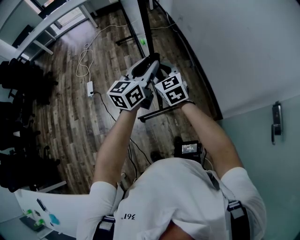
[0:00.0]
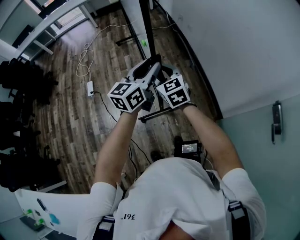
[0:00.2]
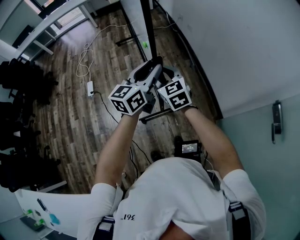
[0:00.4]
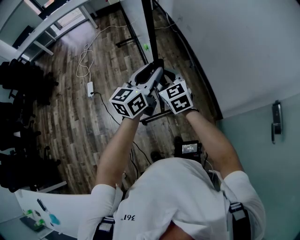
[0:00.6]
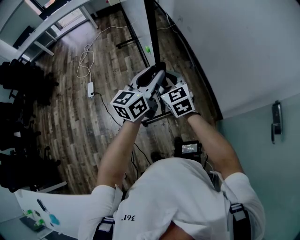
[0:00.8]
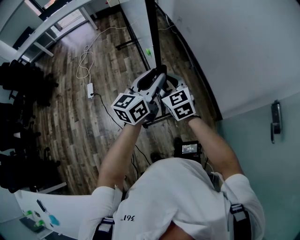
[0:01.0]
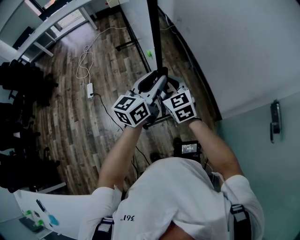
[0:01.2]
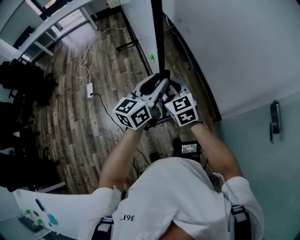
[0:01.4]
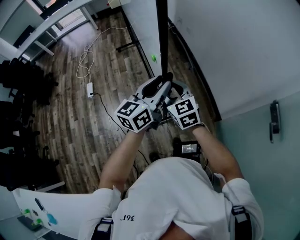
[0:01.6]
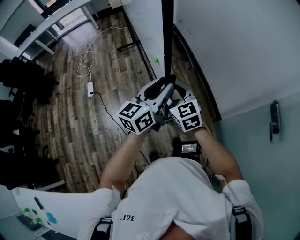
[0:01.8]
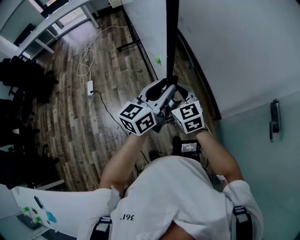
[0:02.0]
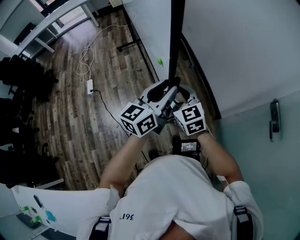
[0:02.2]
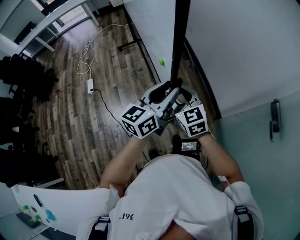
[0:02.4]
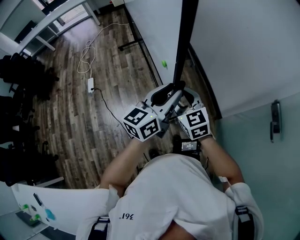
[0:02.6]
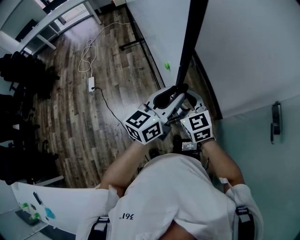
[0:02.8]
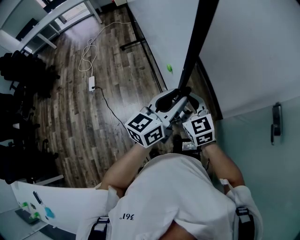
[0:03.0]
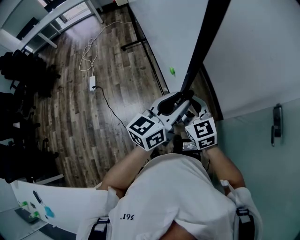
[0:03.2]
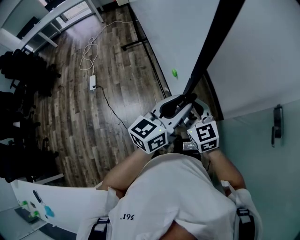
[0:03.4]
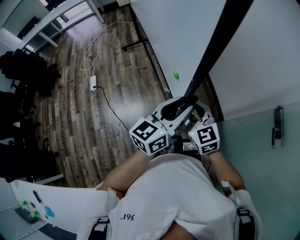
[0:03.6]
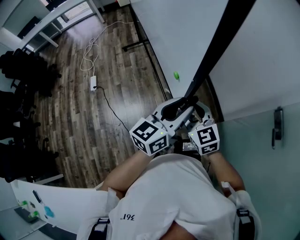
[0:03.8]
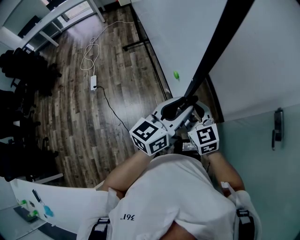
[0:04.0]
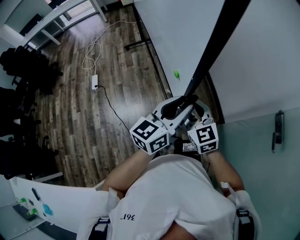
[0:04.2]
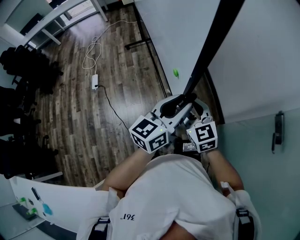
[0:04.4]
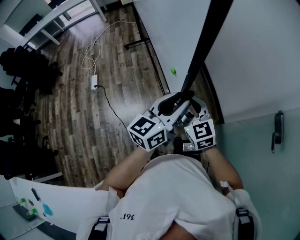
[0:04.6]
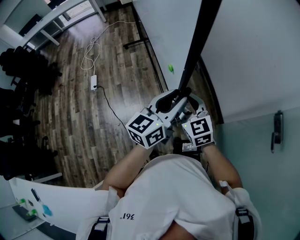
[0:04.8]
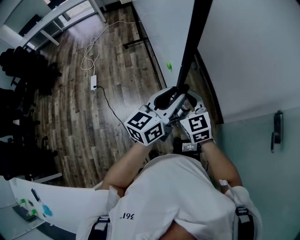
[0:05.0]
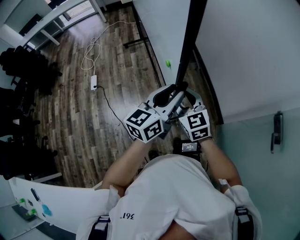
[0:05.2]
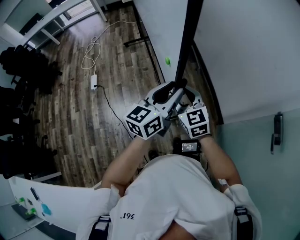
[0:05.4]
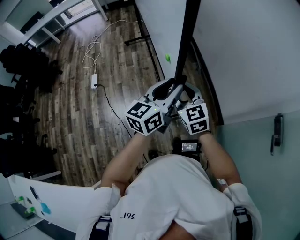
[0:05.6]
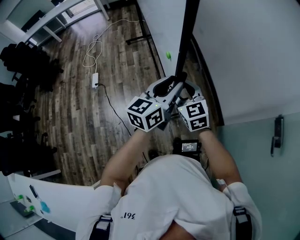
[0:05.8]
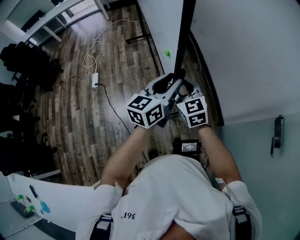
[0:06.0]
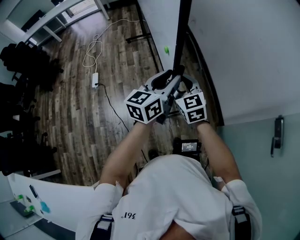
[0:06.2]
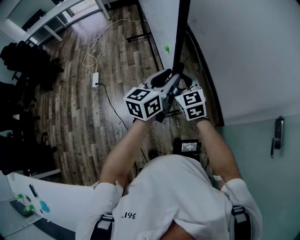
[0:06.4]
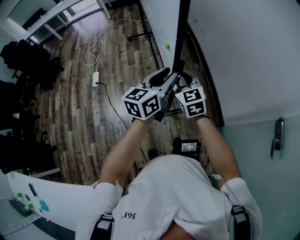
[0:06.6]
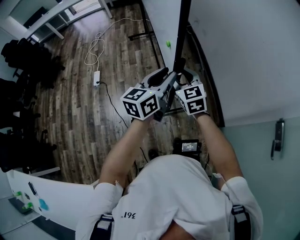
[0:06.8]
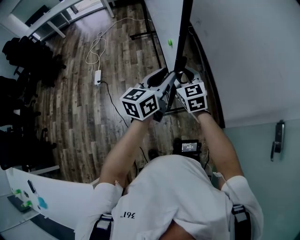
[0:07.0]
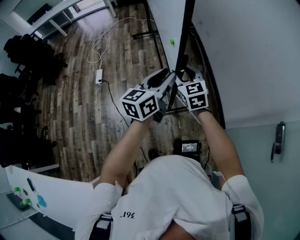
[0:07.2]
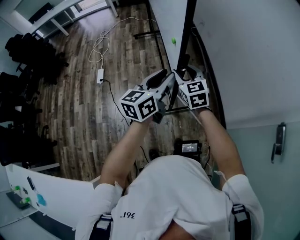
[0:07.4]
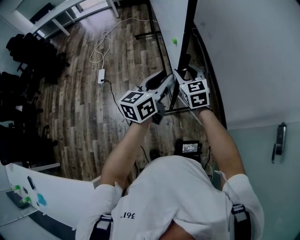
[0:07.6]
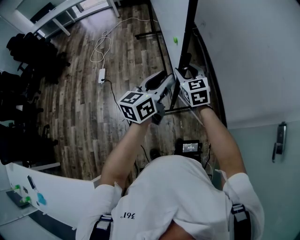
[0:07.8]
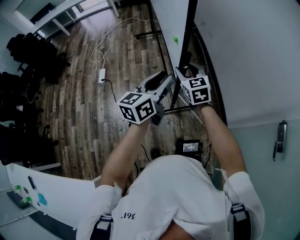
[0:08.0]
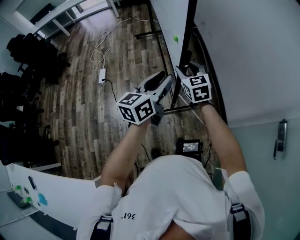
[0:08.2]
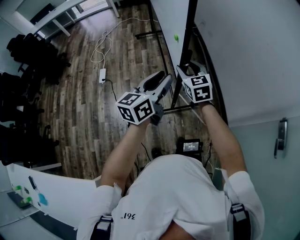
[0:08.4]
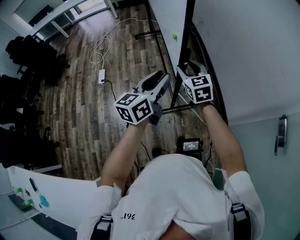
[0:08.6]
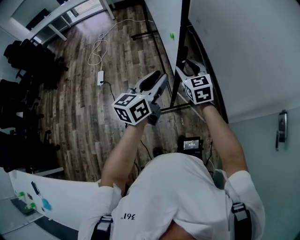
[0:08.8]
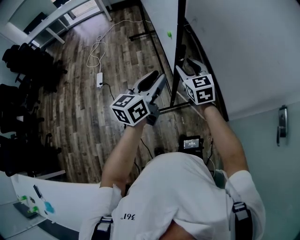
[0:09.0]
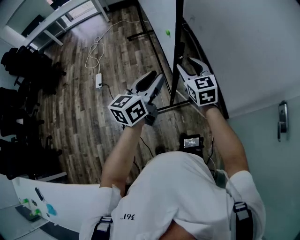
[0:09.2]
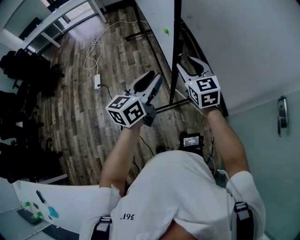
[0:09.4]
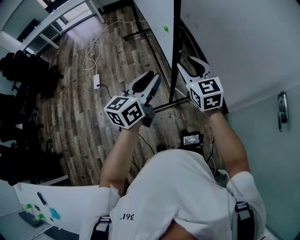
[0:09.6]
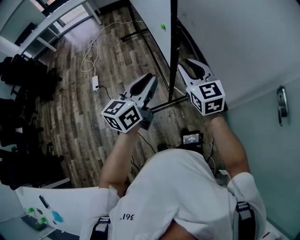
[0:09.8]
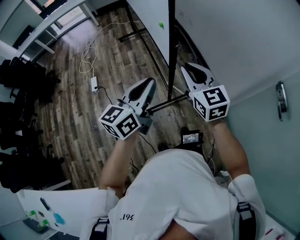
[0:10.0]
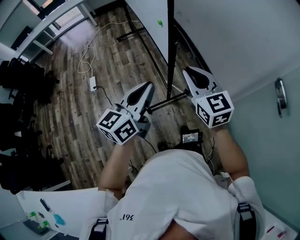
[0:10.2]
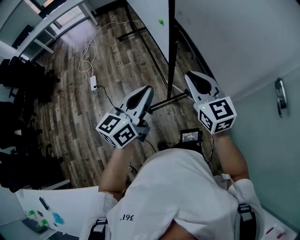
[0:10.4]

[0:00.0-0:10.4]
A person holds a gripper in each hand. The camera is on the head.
0:00.0 to 0:01.4: The grippers both shift backward by about 10 cm.
0:01.4 to 0:03.0: The grippers both shift backward and to the right by approximately 10 cm.
0:03.0 to 0:04.4: There are only small adjustments of the grippers.
0:04.4 to 0:06.0: The two grippers go roughly 10 cm forward.
0:06.0 to 0:07.4: The right gripper goes roughly 5 cm forward; the left gripper travels to the left by about 5 cm.
0:07.4 to 0:09.0: The left gripper changes place by approximately 5 cm.
0:09.0 to 0:10.4: The left gripper shifts approximately 15 cm backward, and closes up. The right gripper shifts about 20 cm backward and upward, and closes up.

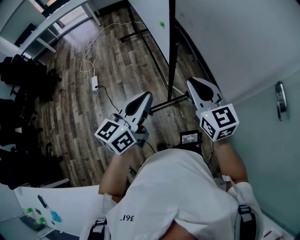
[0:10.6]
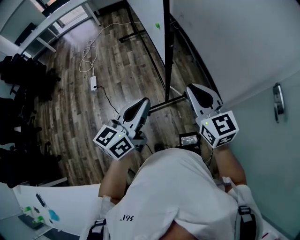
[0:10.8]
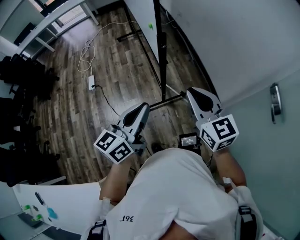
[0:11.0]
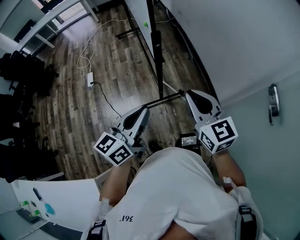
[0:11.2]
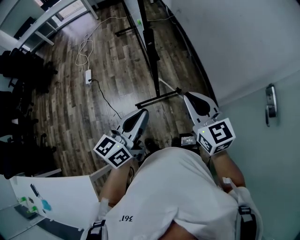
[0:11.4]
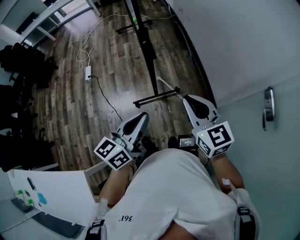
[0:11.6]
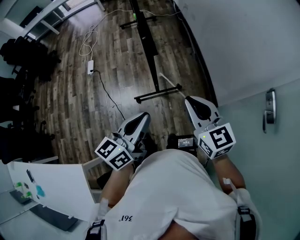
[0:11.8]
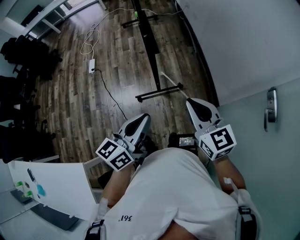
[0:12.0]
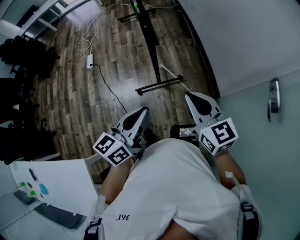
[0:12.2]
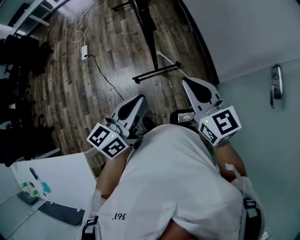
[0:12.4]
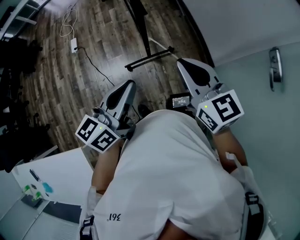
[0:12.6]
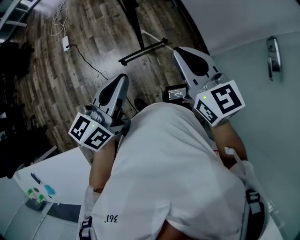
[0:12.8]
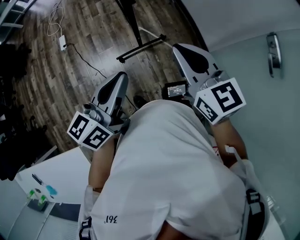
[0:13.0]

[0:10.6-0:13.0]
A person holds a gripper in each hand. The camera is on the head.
0:10.6 to 0:11.8: The two grippers go some 15 cm to the right and backward.
0:11.8 to 0:13.0: The left gripper ends up roughly 5 cm from where it was.

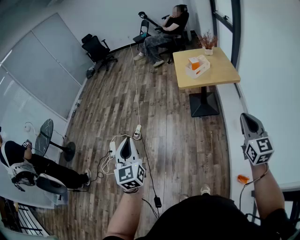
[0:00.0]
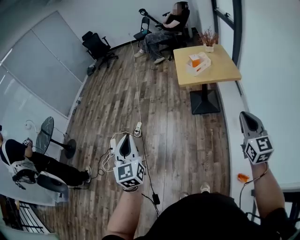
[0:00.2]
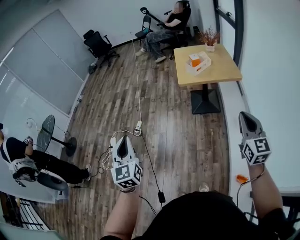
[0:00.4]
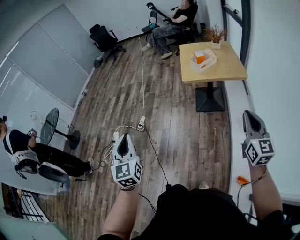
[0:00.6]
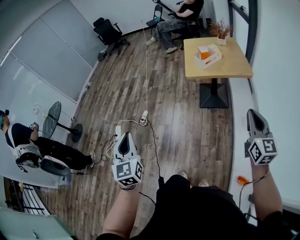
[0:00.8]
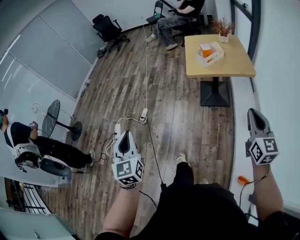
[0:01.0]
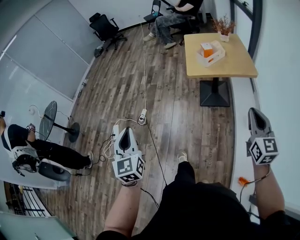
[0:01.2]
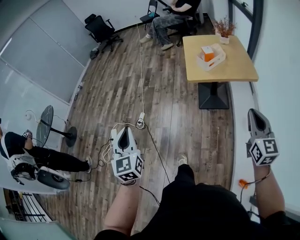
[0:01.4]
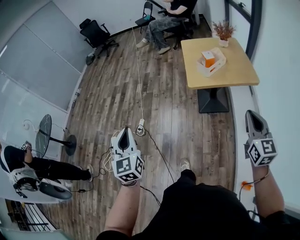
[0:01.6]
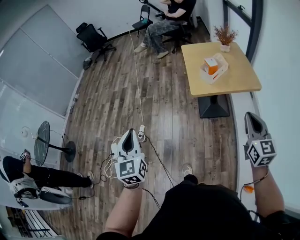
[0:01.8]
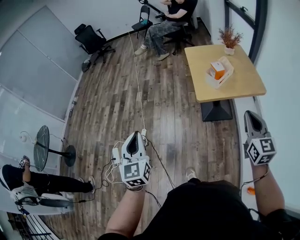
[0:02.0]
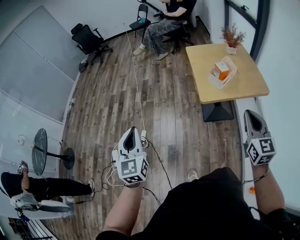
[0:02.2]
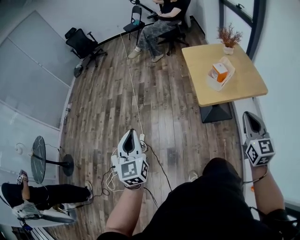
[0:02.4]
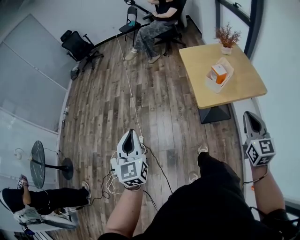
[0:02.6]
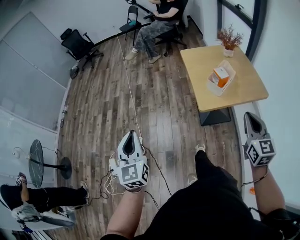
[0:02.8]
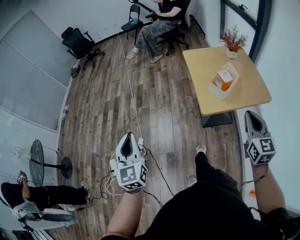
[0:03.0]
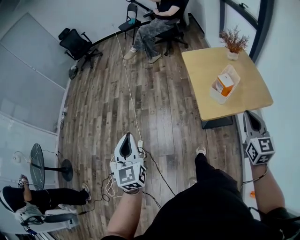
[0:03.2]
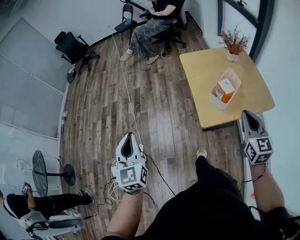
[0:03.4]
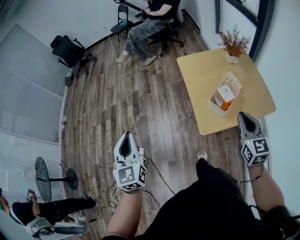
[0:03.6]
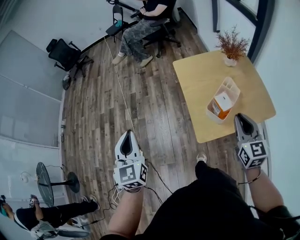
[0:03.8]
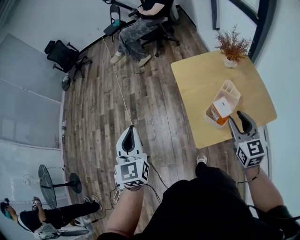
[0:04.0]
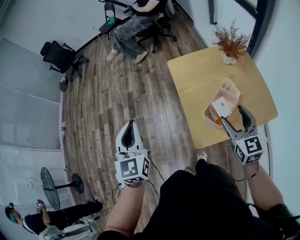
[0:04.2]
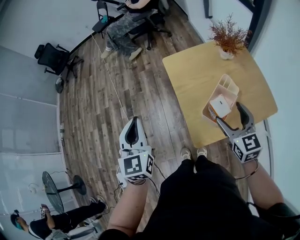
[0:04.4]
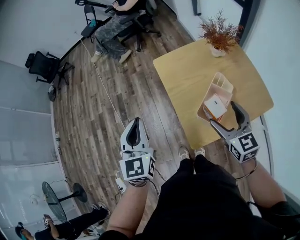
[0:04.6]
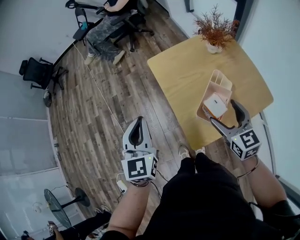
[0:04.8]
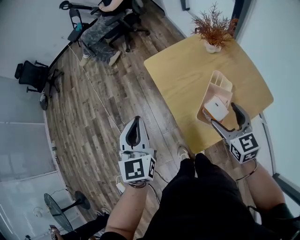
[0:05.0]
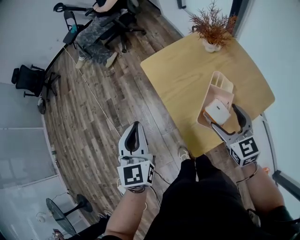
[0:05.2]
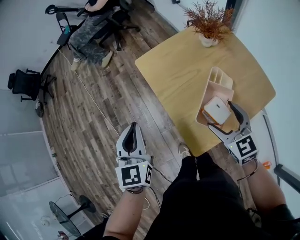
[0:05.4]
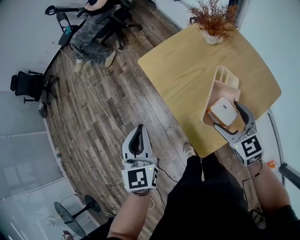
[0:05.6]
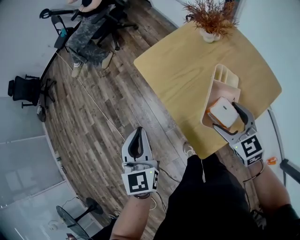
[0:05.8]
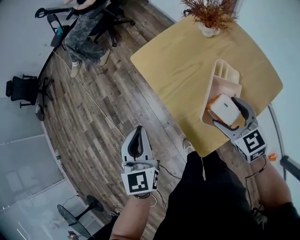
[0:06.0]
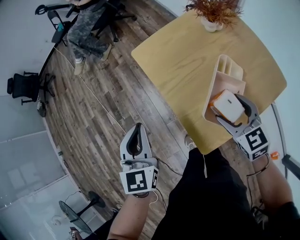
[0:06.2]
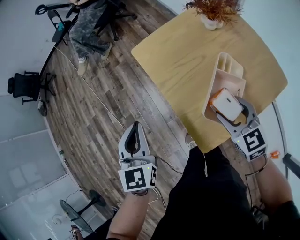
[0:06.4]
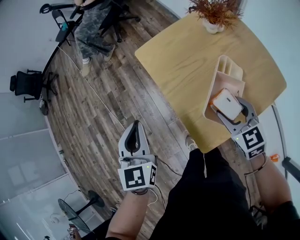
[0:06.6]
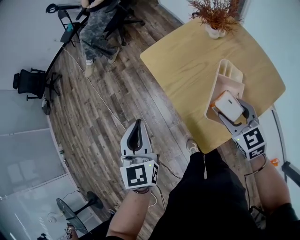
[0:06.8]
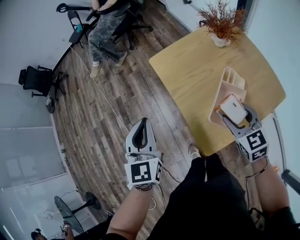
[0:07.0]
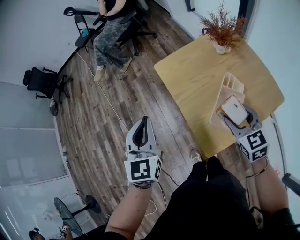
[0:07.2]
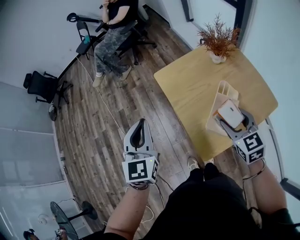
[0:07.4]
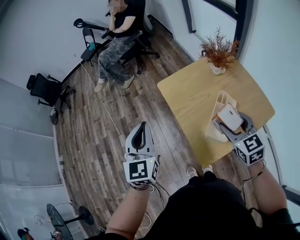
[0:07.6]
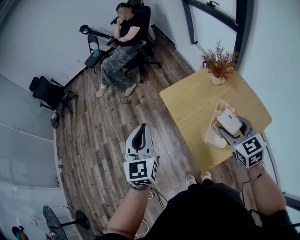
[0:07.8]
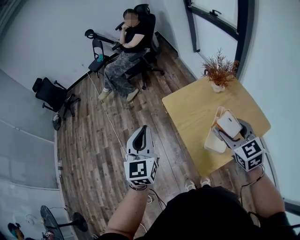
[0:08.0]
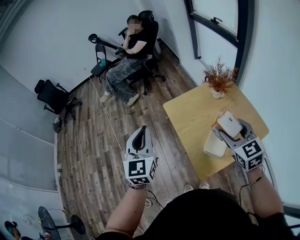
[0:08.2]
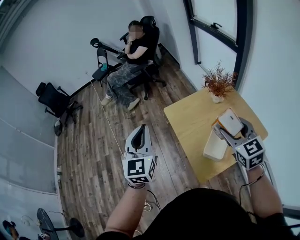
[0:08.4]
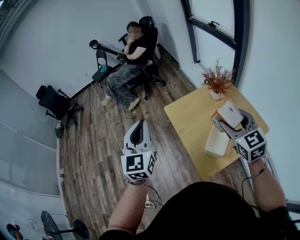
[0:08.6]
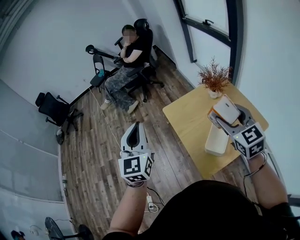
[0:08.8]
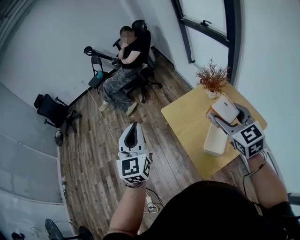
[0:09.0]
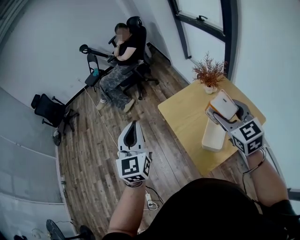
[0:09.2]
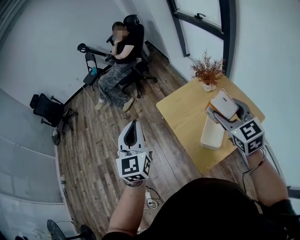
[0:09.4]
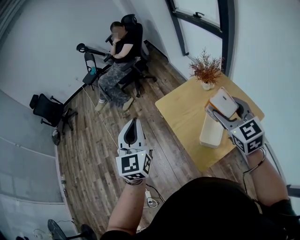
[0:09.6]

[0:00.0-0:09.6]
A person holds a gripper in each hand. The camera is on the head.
0:00.0 to 0:01.6: Both grippers move forward, approximately 20 cm.
0:01.6 to 0:03.2: Both grippers travel together forward, roughly 30 cm.
0:03.2 to 0:04.8: The right gripper travels forward and downward by approximately 25 cm, and opens up. The left gripper travels forward and to the right by roughly 40 cm, and changes its angle by approximately 20 degrees.
0:04.8 to 0:06.4: The right gripper is displaced downward by roughly 10 cm. Meanwhile the left gripper travels downward and forward by roughly 10 cm.
0:06.4 to 0:08.0: Both grippers travel together upward, approximately 20 cm.
0:08.0 to 0:09.6: The grippers both shift upward by about 5 cm.

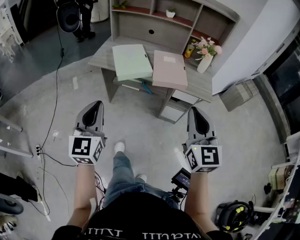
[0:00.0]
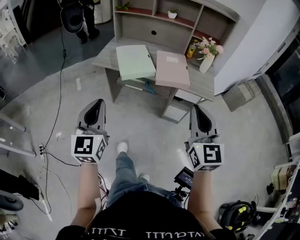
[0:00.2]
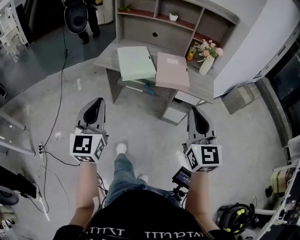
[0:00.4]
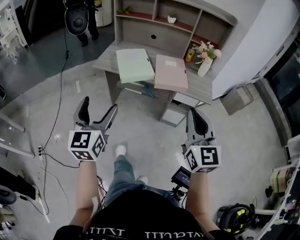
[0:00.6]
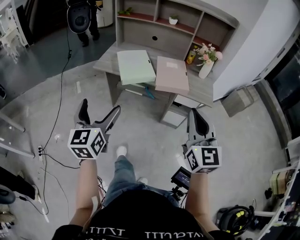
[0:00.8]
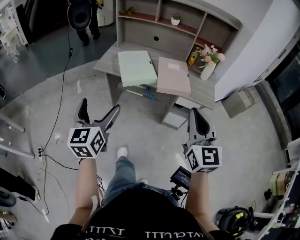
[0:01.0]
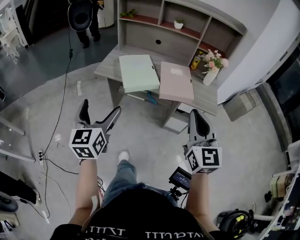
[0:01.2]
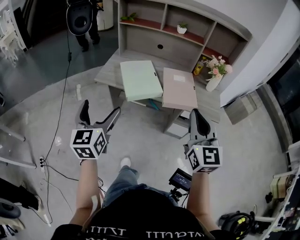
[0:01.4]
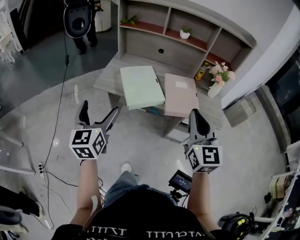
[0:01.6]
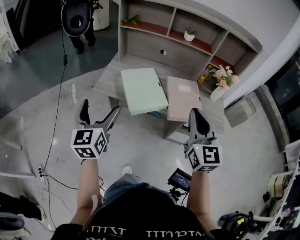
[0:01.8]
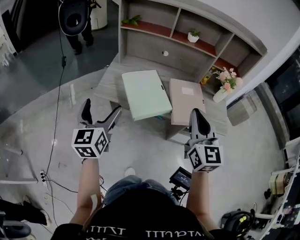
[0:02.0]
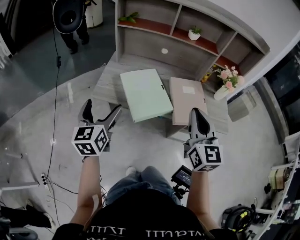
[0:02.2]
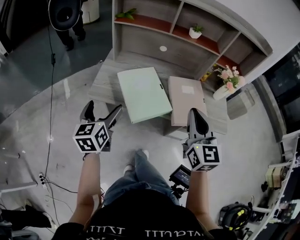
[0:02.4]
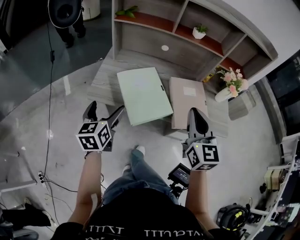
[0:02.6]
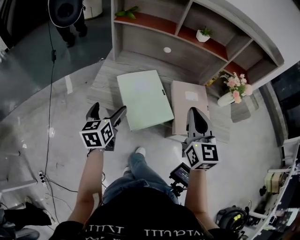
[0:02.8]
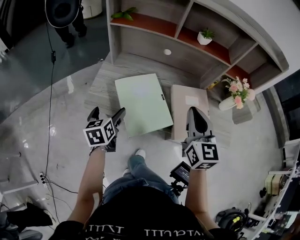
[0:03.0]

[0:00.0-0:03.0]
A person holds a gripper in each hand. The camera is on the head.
0:00.0 to 0:01.6: The two grippers go about 20 cm forward and to the left. The left gripper opens up.
0:01.6 to 0:03.0: The right gripper goes approximately 25 cm forward; the left gripper goes approximately 30 cm forward and downward, and changes its angle by approximately 30 degrees.
